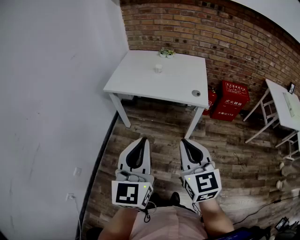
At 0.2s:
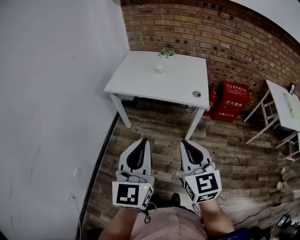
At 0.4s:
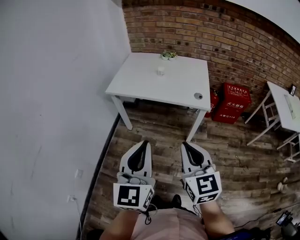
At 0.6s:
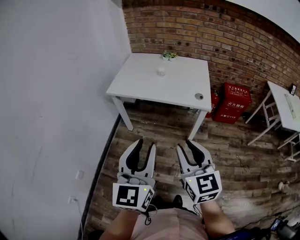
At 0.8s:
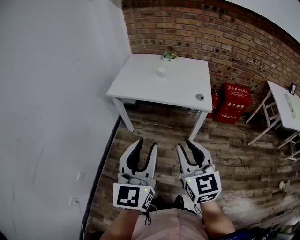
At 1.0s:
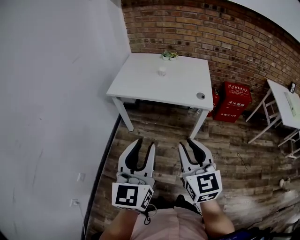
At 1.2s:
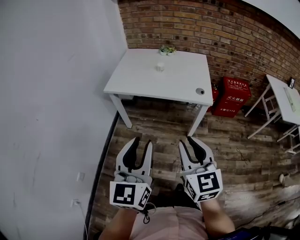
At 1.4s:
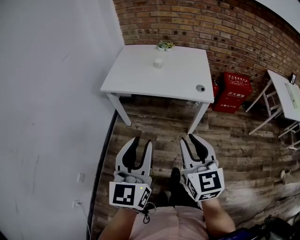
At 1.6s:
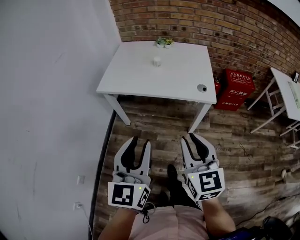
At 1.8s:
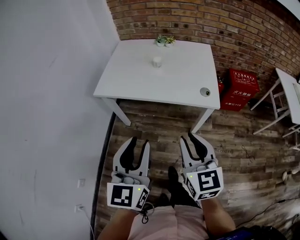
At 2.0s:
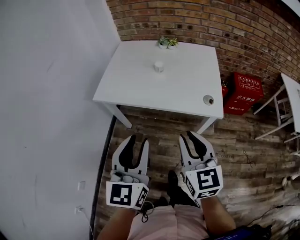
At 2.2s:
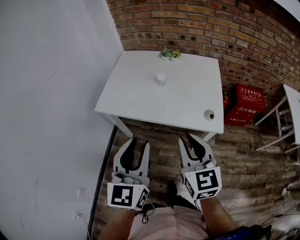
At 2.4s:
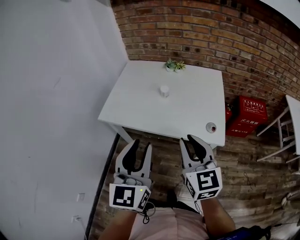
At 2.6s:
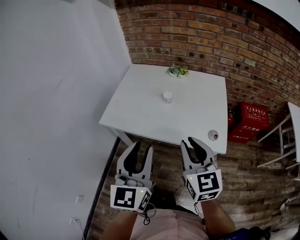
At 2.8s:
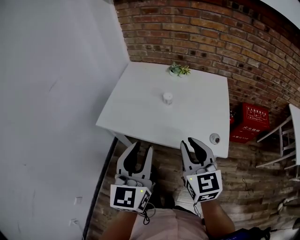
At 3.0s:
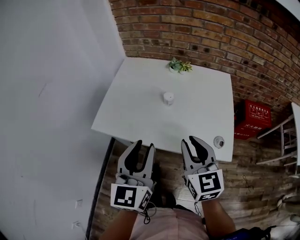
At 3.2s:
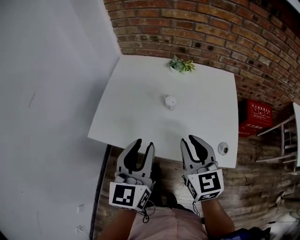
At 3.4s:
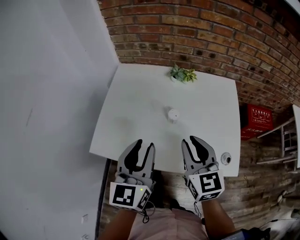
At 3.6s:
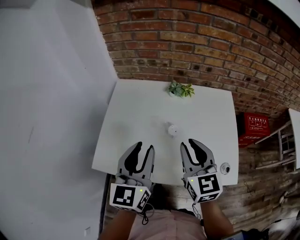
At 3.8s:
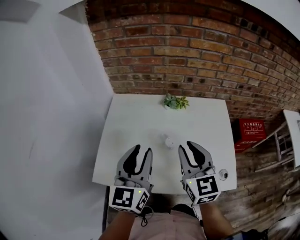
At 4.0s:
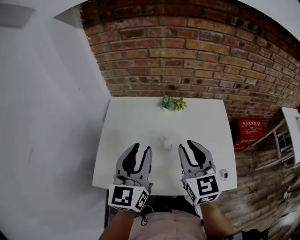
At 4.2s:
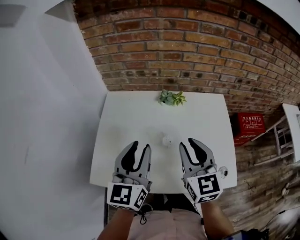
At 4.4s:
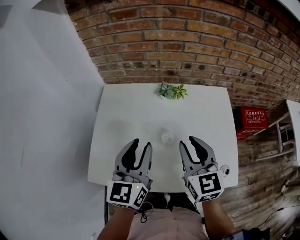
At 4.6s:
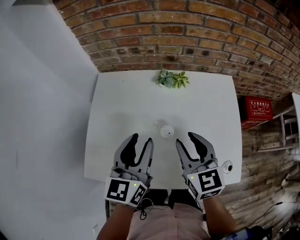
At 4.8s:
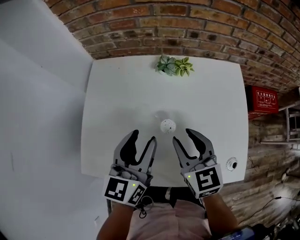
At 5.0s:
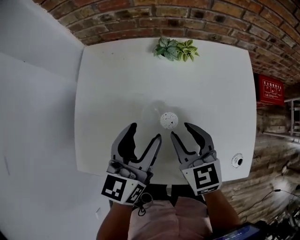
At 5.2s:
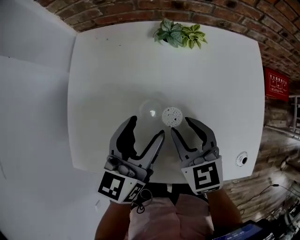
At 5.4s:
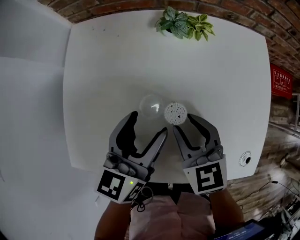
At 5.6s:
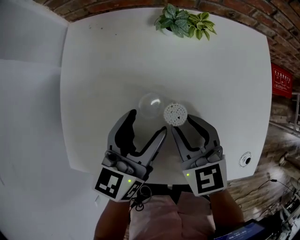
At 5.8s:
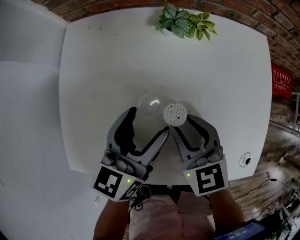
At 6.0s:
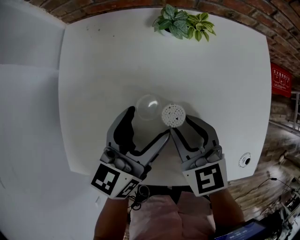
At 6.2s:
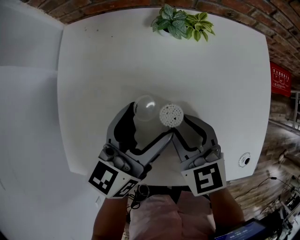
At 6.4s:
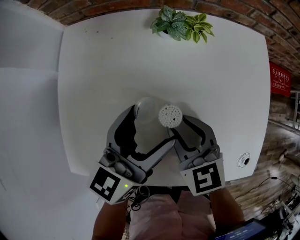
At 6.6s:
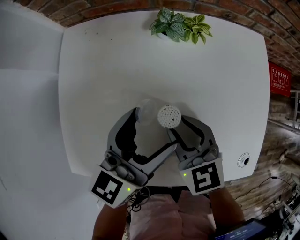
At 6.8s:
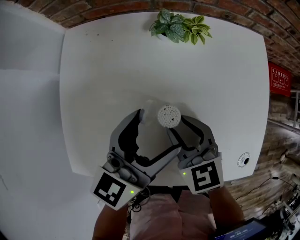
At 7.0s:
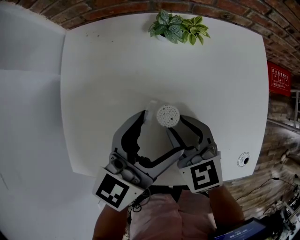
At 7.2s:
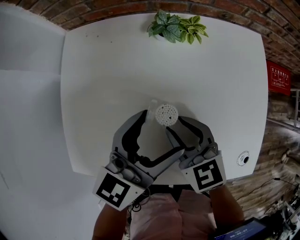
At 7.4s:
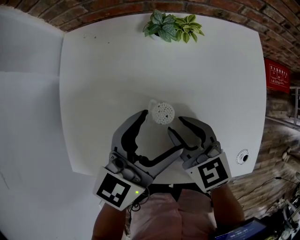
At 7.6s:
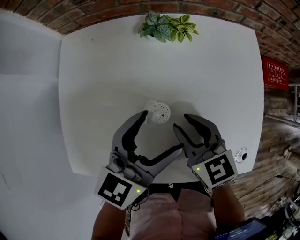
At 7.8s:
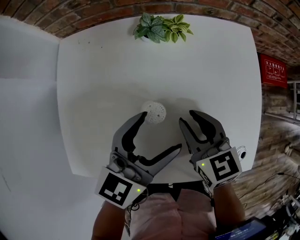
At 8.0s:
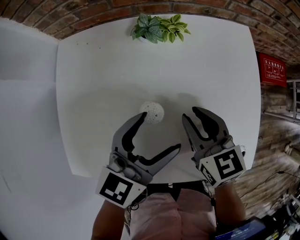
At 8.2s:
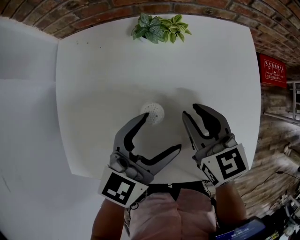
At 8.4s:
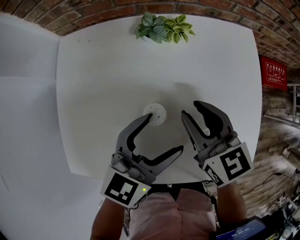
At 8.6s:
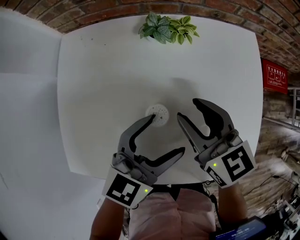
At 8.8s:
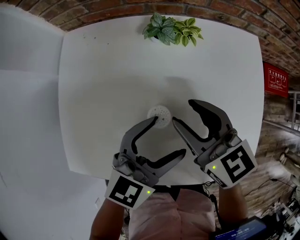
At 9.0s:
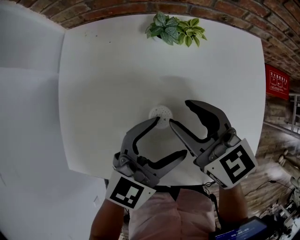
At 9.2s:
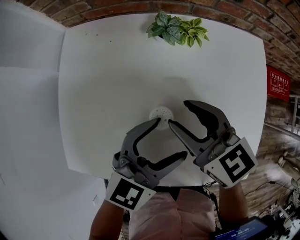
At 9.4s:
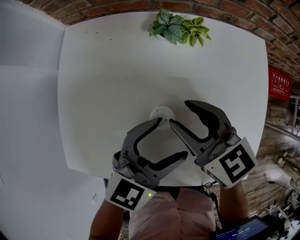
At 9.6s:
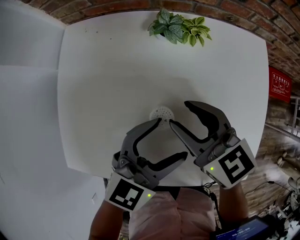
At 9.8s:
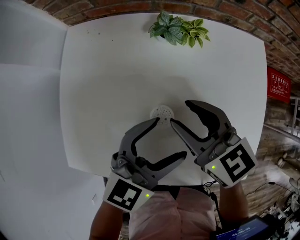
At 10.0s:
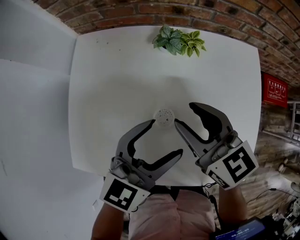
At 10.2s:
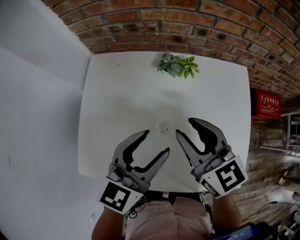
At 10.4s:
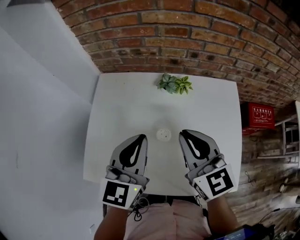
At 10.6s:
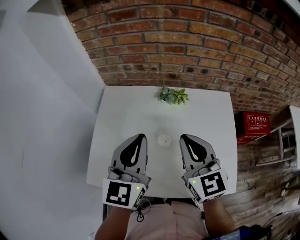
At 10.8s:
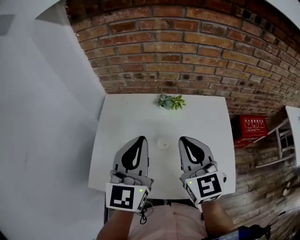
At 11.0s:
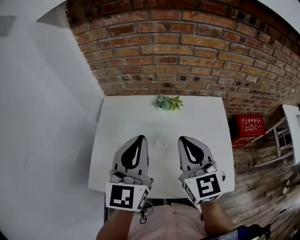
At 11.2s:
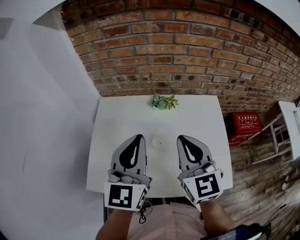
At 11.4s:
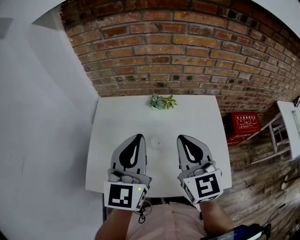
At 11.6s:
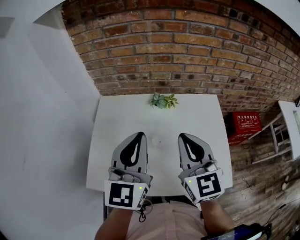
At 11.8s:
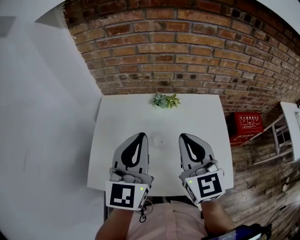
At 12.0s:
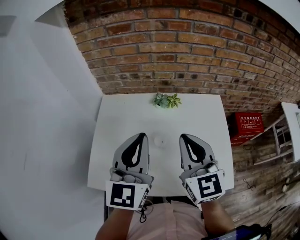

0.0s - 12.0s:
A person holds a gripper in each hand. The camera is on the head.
0.0s - 1.6s: The grippers both shift forward by about 10 cm. The right gripper opens up.
1.6s - 3.0s: The grippers both shift forward by approximately 30 cm.
3.0s - 4.4s: Both grippers travel together forward, some 20 cm.
4.4s - 6.0s: The right gripper goes about 20 cm downward, and rotates roughly 30 degrees. Meanwhile the left gripper goes about 20 cm downward and forward, changes its angle by approximately 20 degrees, and opens up.
6.0s - 7.6s: The left gripper shifts approximately 5 cm to the right, and turns by about 20 degrees.
7.6s - 9.0s: The right gripper shifts some 5 cm upward.
9.0s - 10.4s: The right gripper heads upward, covering roughly 15 cm, swivels about 20 degrees, and closes up. Meanwhile the left gripper is displaced upward and to the left by approximately 15 cm, swivels approximately 30 degrees, and closes up.
10.4s - 12.0s: The right gripper heads upward and backward, covering about 10 cm; the left gripper heads upward, covering some 10 cm.

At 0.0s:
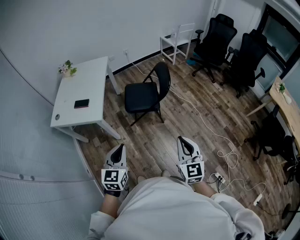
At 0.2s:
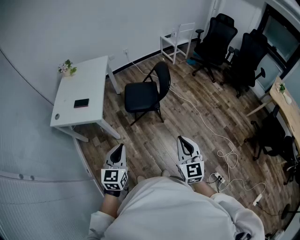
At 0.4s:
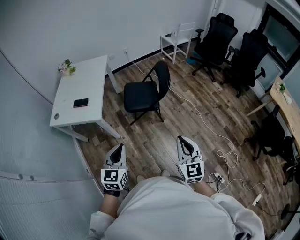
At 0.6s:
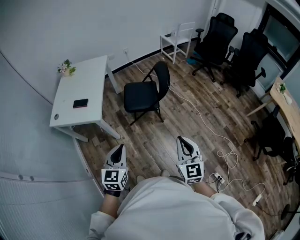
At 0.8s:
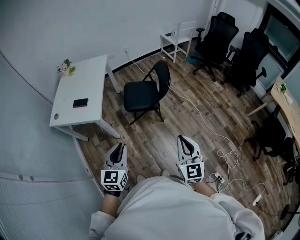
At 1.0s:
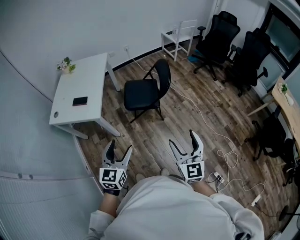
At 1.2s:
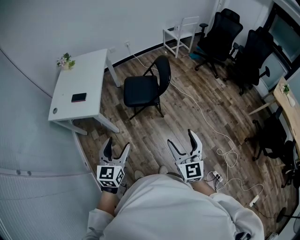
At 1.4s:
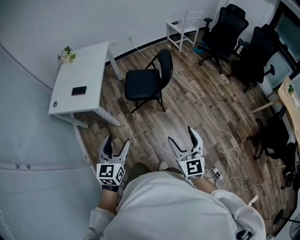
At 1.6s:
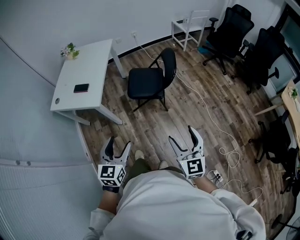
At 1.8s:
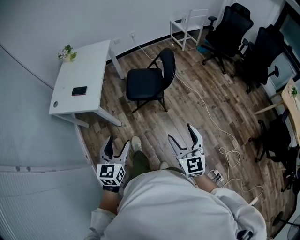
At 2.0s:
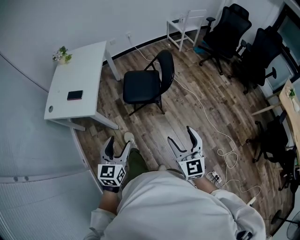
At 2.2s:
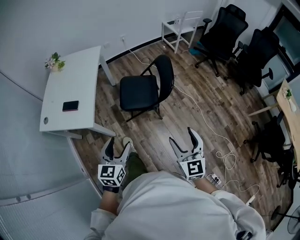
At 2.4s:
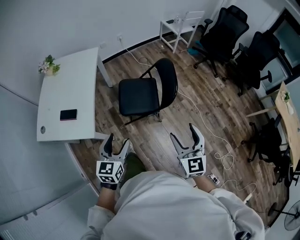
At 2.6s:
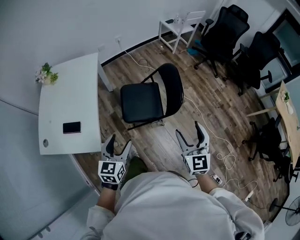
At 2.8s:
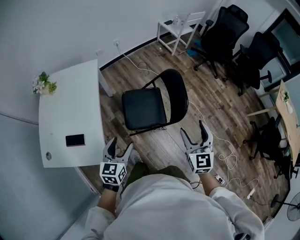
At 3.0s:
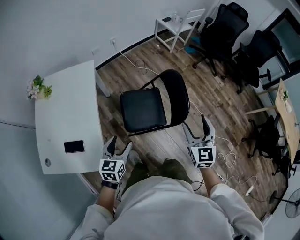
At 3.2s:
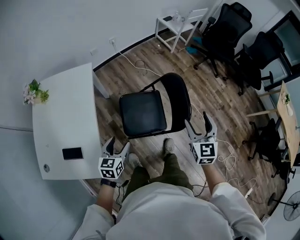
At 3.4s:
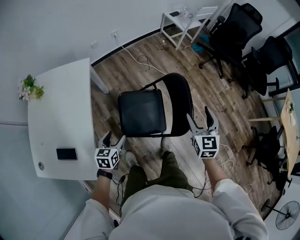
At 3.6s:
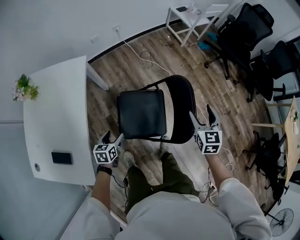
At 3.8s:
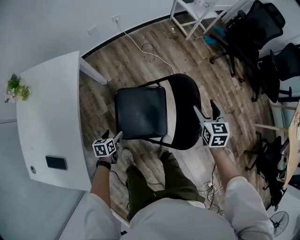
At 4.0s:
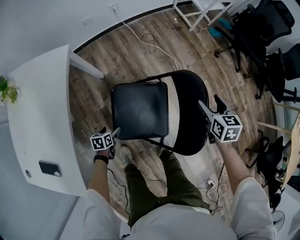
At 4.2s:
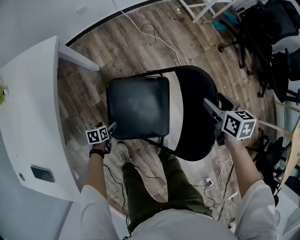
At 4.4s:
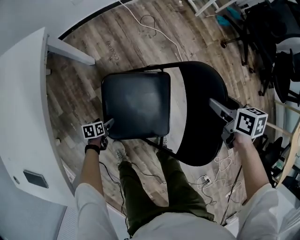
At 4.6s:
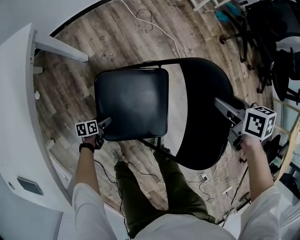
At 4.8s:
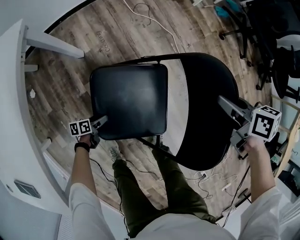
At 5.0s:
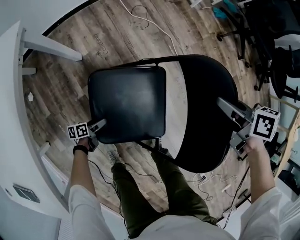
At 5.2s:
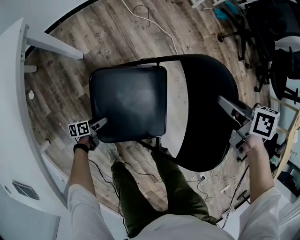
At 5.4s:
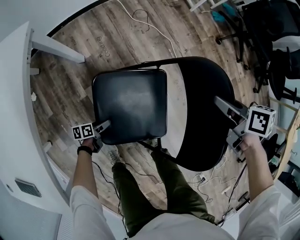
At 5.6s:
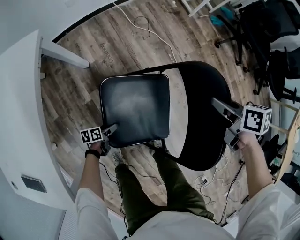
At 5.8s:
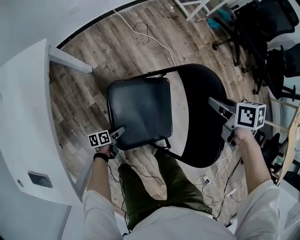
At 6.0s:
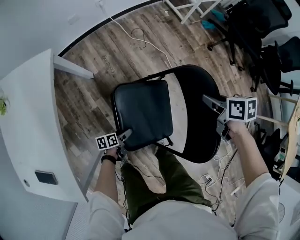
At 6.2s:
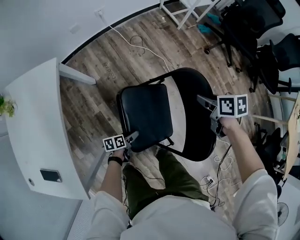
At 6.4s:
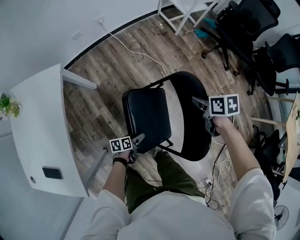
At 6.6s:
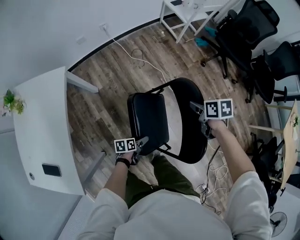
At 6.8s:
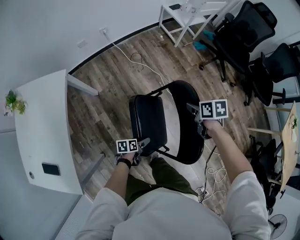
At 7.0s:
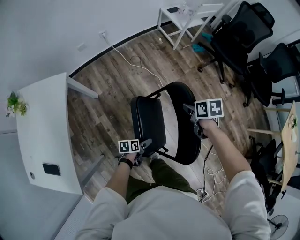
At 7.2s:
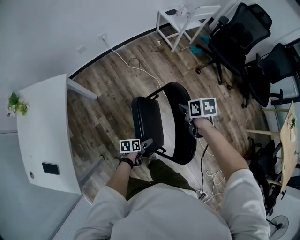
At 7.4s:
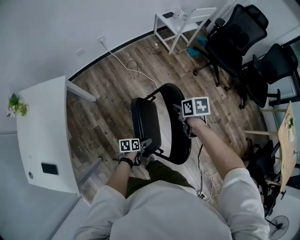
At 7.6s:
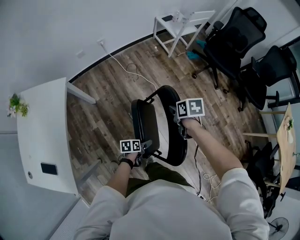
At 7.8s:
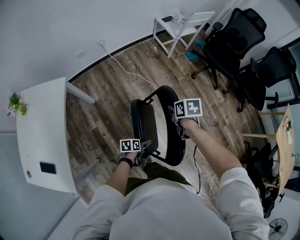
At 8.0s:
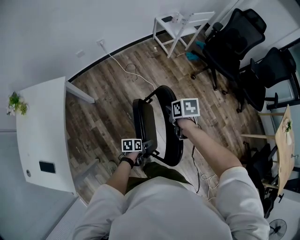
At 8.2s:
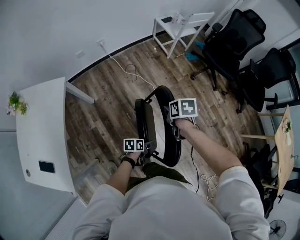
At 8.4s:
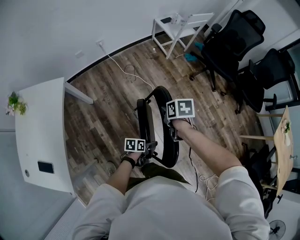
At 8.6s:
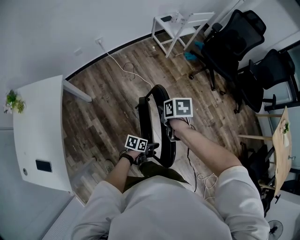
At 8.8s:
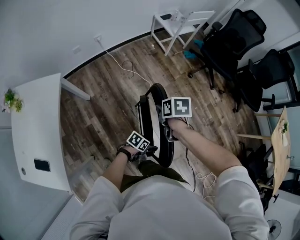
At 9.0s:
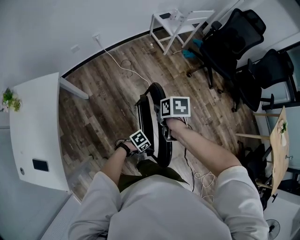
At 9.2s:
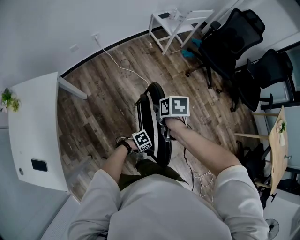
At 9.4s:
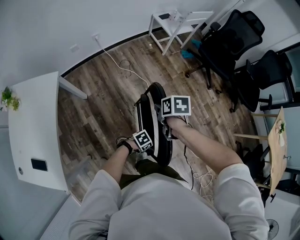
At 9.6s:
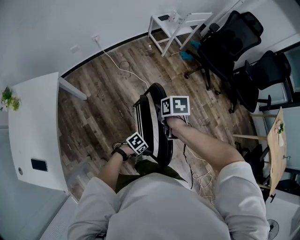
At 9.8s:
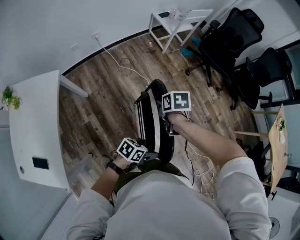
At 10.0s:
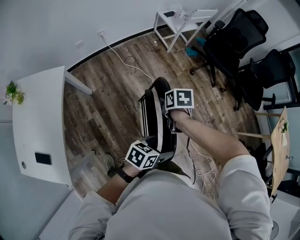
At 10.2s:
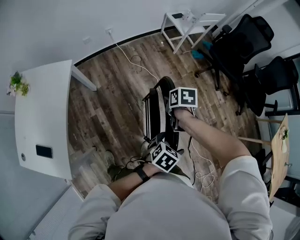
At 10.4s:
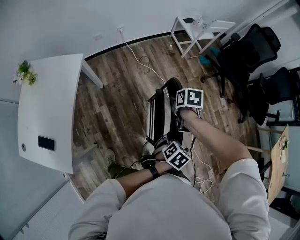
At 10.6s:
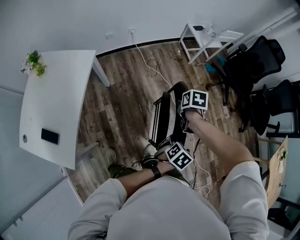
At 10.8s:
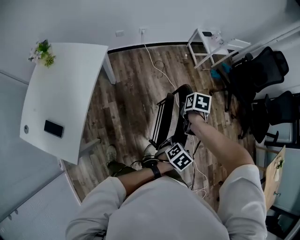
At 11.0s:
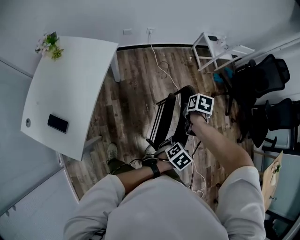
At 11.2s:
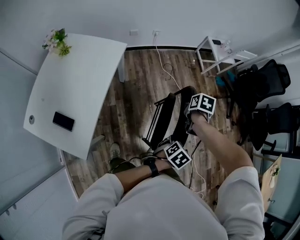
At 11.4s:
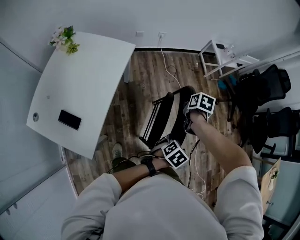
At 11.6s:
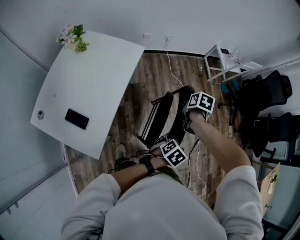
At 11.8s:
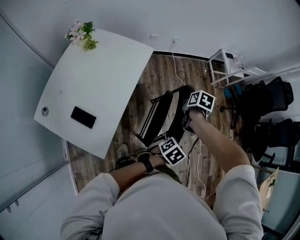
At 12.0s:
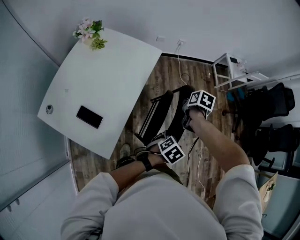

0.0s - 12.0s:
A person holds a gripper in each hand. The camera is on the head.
0.0s - 1.6s: The left gripper ends up about 5 cm from where it was, and opens up. Meanwhile the right gripper moves approximately 5 cm, and opens its fingers.
1.6s - 3.0s: The pair of grippers is taken forward, roughly 50 cm. The right gripper turns by some 20 degrees. The left gripper turns by some 20 degrees.
3.0s - 4.4s: The right gripper goes about 50 cm forward and downward, and points its fingers some 40 degrees further downward, while the left gripper goes roughly 60 cm downward, and points its fingers some 40 degrees further downward.
4.4s - 6.0s: The right gripper shifts some 10 cm upward, and closes; the left gripper heads to the right and upward, covering some 15 cm, and changes its angle by approximately 20 degrees.
6.0s - 7.6s: The left gripper travels to the right and upward by roughly 30 cm; the right gripper goes approximately 10 cm upward.
7.6s - 9.0s: The left gripper moves some 10 cm, and twists roughly 50 degrees clockwise, seen from behind.
9.0s - 10.4s: The left gripper moves upward, about 20 cm, and swivels about 40 degrees.
10.4s - 12.0s: The right gripper shifts some 35 cm to the left and backward; the left gripper is displaced to the left by about 35 cm.
